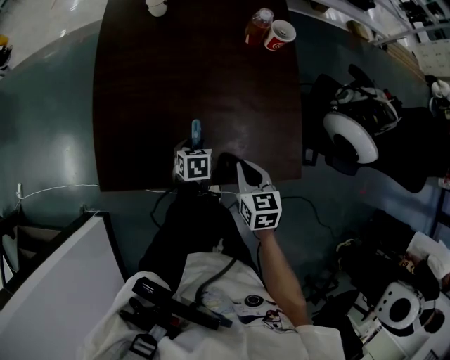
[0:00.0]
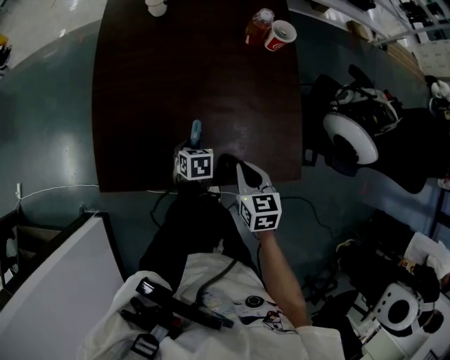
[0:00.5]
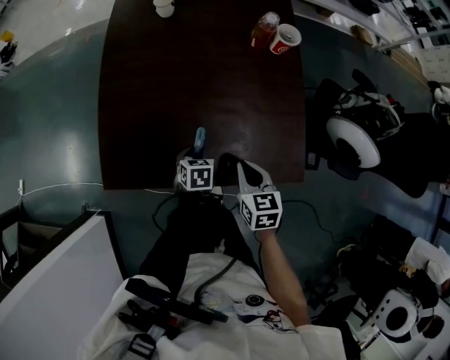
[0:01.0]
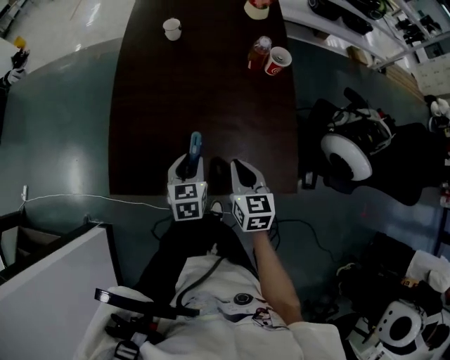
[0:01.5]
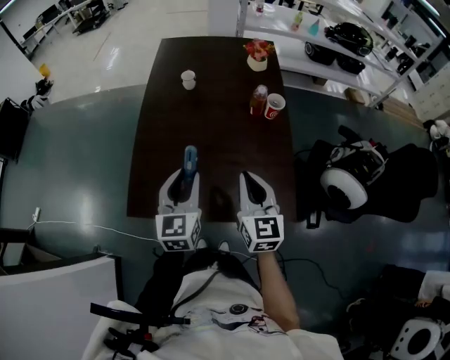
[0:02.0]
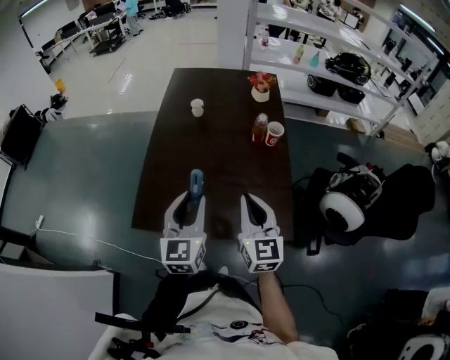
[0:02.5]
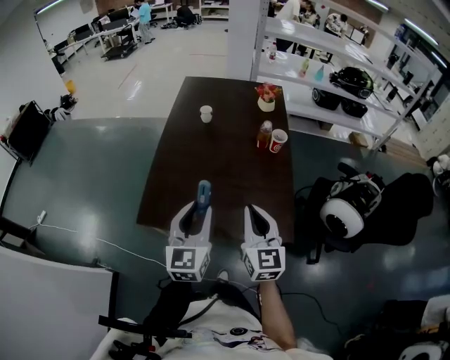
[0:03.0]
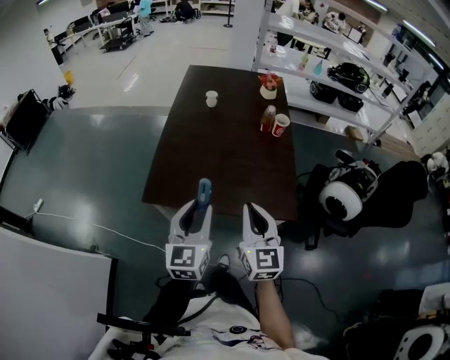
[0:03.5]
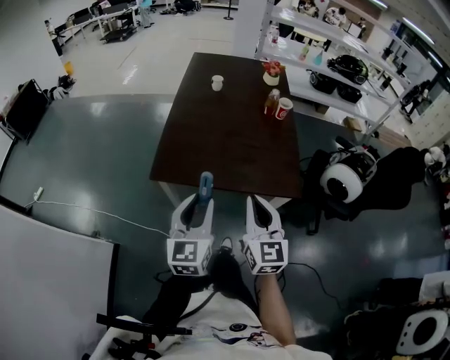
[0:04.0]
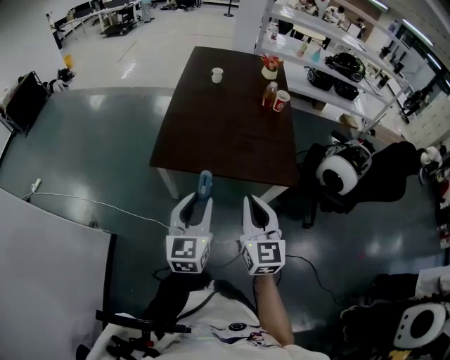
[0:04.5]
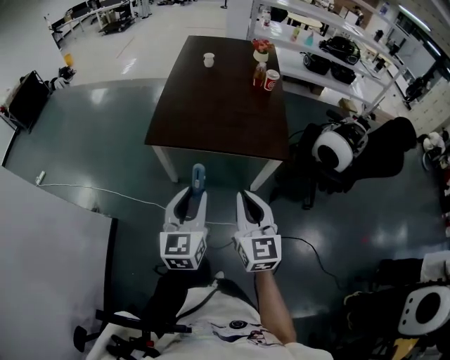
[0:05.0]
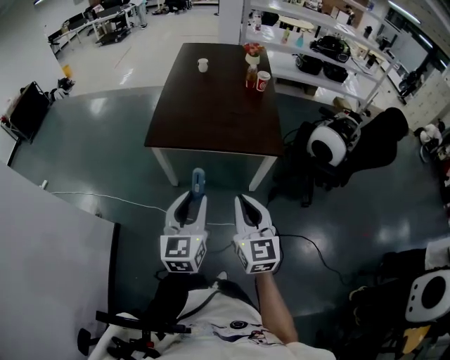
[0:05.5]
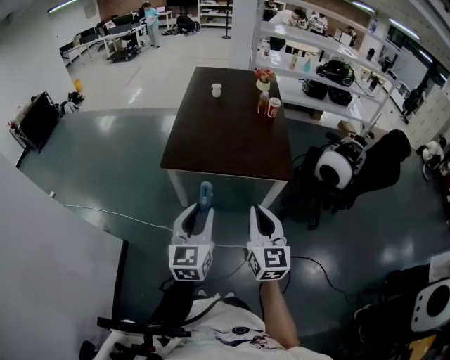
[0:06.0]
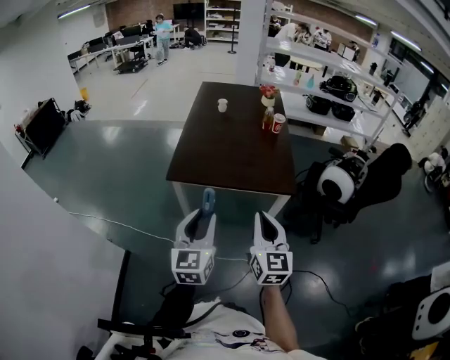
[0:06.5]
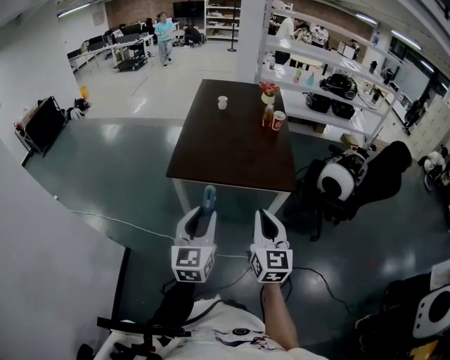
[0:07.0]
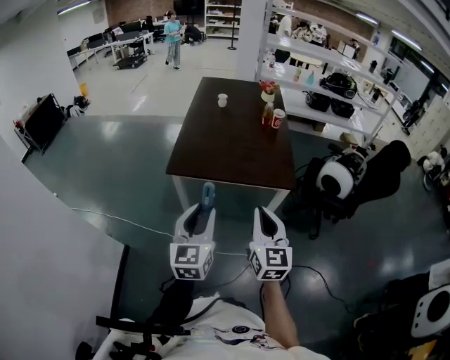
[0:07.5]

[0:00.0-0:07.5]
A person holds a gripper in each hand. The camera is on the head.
0.0 to 2.0 s: The right gripper moves upward, approximately 20 cm, and tips its fingers upward by about 30 degrees; the left gripper travels upward by approximately 35 cm, and tilts its fingers about 50 degrees upward.
2.0 to 4.0 s: The two grippers go some 25 cm backward.
4.0 to 5.5 s: Both grippers travel together backward, about 20 cm.
5.5 to 7.5 s: The left gripper heads to the left, covering about 5 cm.

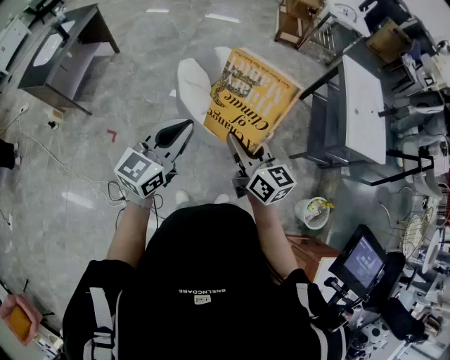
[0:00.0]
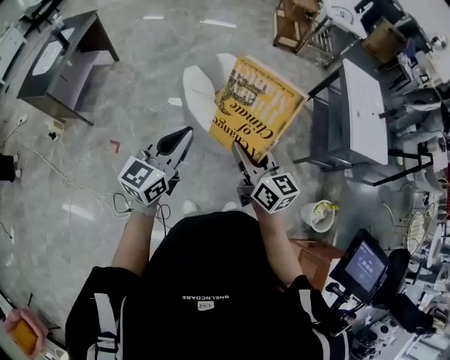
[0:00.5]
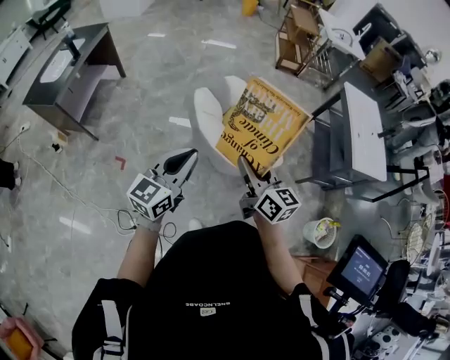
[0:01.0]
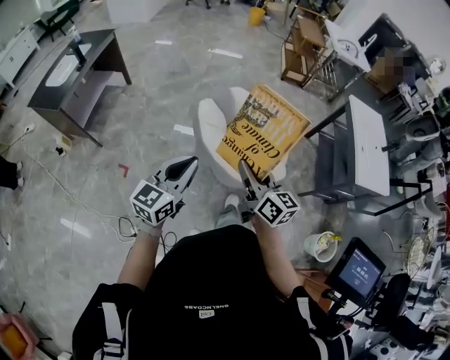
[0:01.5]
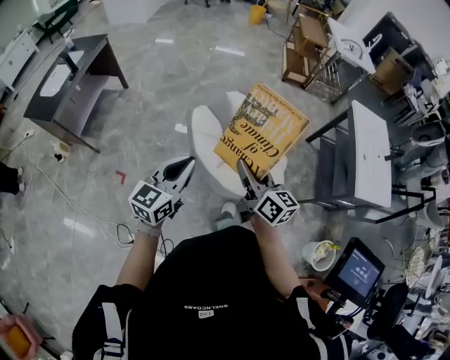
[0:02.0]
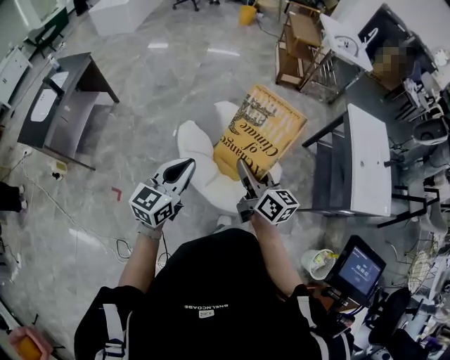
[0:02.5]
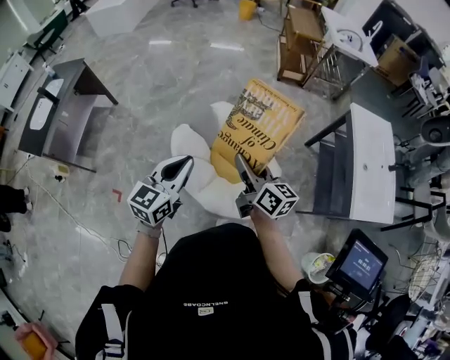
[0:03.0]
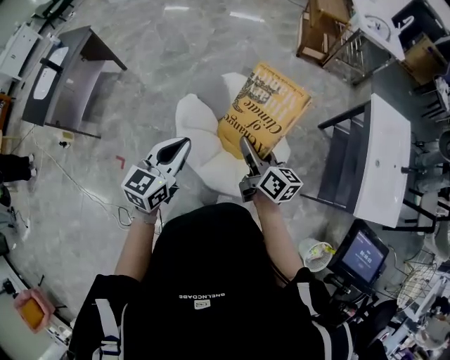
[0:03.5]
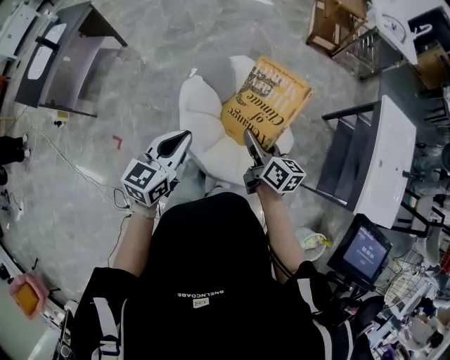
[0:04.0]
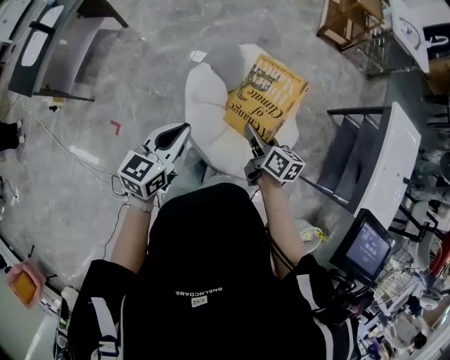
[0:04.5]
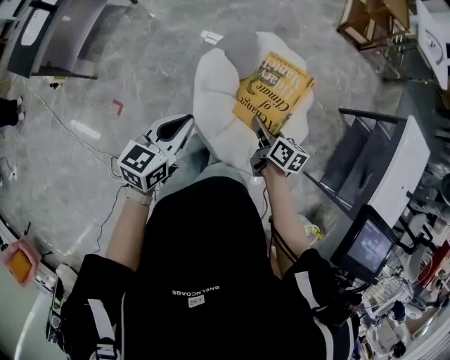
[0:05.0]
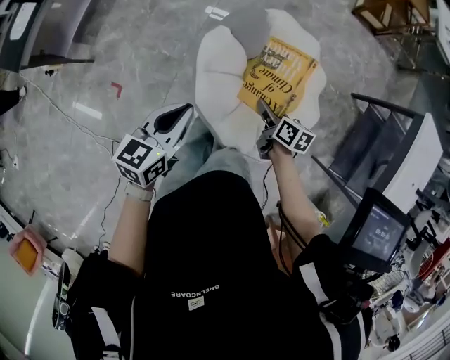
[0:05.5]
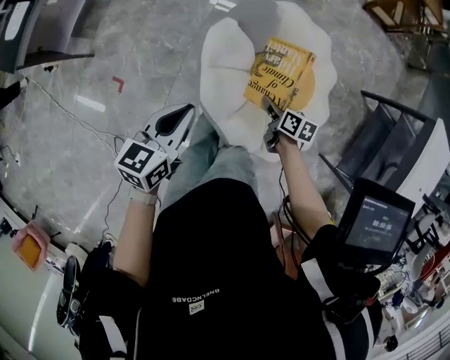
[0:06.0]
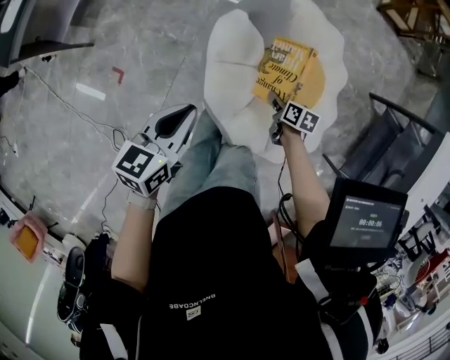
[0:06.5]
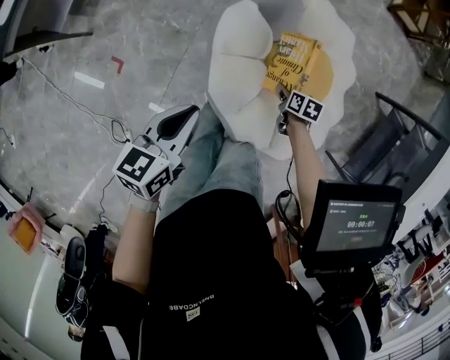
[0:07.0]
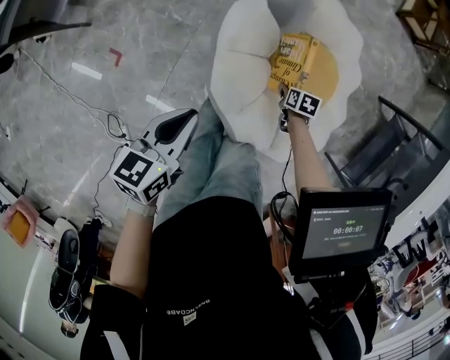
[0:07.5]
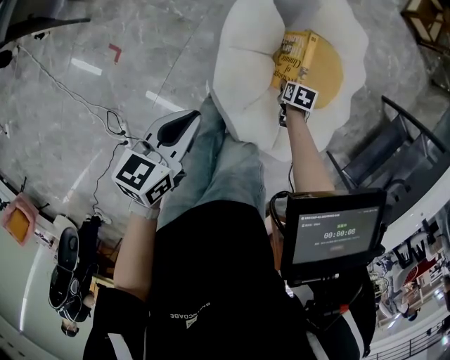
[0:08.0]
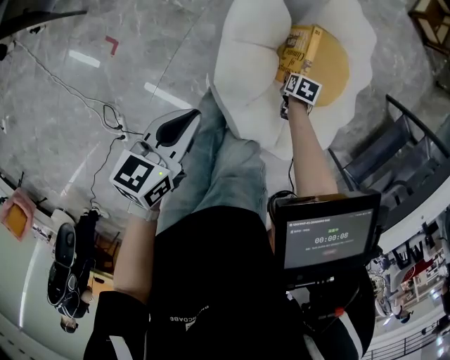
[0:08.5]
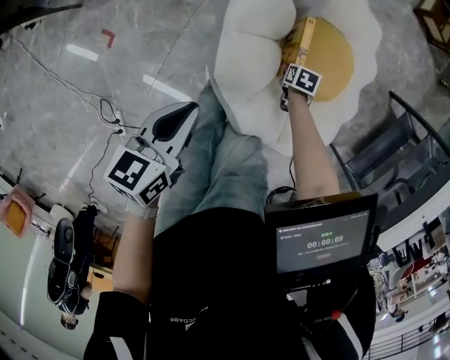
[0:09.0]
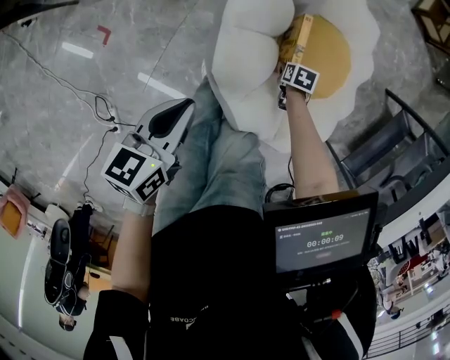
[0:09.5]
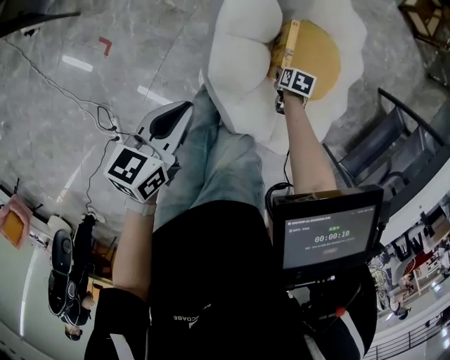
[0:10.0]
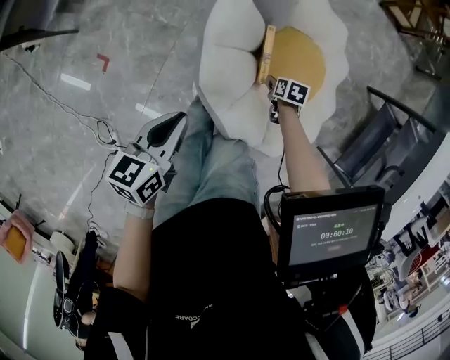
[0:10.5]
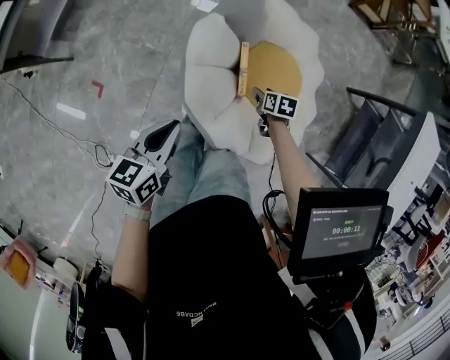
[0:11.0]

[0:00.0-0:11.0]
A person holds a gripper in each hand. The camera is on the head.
0.0 to 2.0 s: Both grippers move forward and to the left, some 20 cm.
2.0 to 3.5 s: The two grippers go approximately 25 cm forward and to the right.
3.5 to 5.5 s: The left gripper heads downward, to the left and forward, covering approximately 30 cm, and swivels some 20 degrees. Meanwhile the right gripper travels downward and to the left by about 35 cm, and tilts its fingers approximately 30 degrees downward.
5.5 to 7.5 s: The left gripper shifts some 20 cm downward and to the left; the right gripper goes approximately 30 cm downward, and angles its fingers downward, by roughly 30 degrees.
7.5 to 9.0 s: The grippers both shift downward by approximately 10 cm.
9.0 to 11.0 s: The left gripper moves upward, about 10 cm. Meanwhile the right gripper heads upward, covering roughly 20 cm.

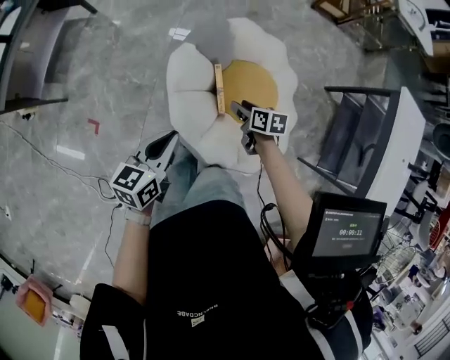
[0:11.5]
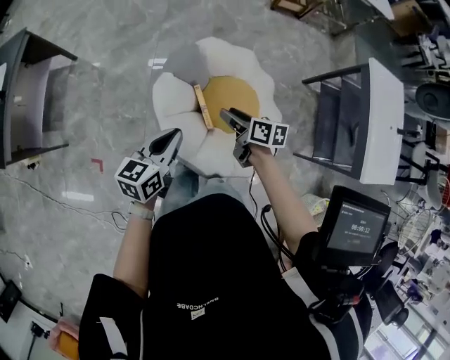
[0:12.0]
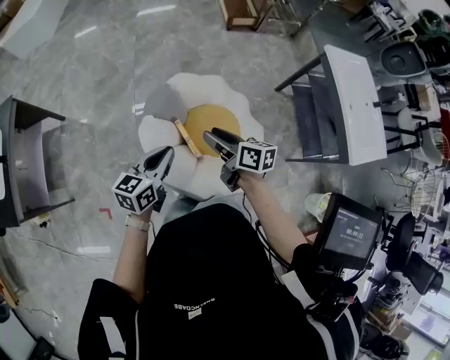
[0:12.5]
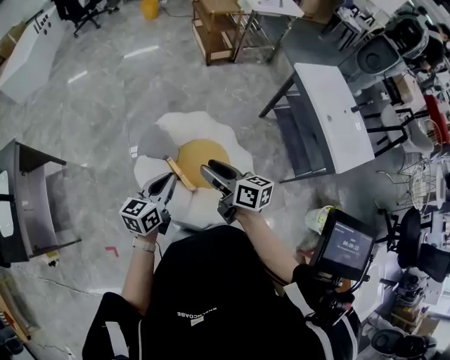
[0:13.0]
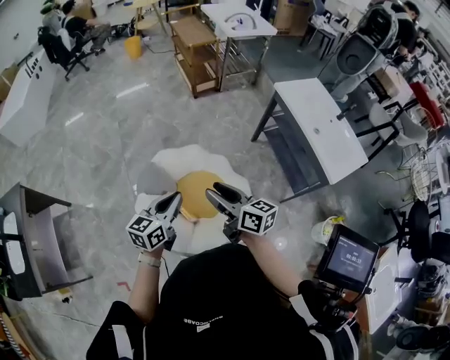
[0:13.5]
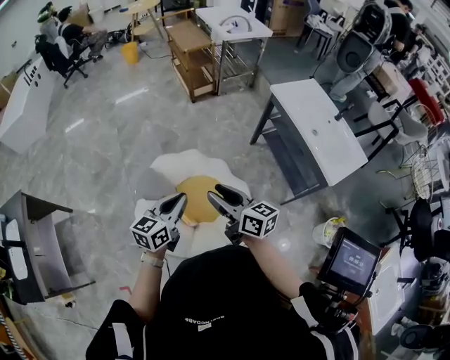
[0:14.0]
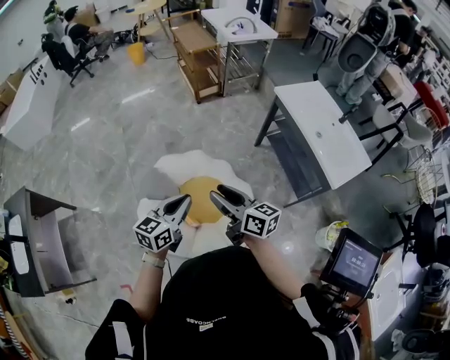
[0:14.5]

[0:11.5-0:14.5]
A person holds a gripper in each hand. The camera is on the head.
11.5 to 13.0 s: The left gripper moves upward, approximately 15 cm, and changes its angle by roughly 30 degrees. Meanwhile the right gripper heads upward, covering about 35 cm, and points its fingers some 40 degrees further upward.
13.0 to 14.5 s: Both grippers travel together to the right, approximately 10 cm.

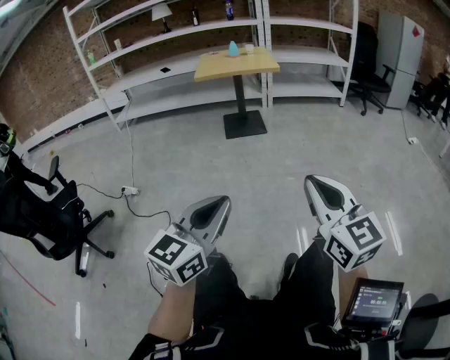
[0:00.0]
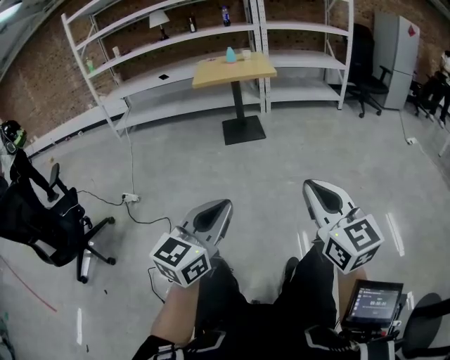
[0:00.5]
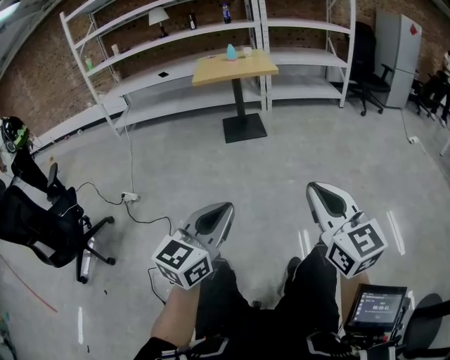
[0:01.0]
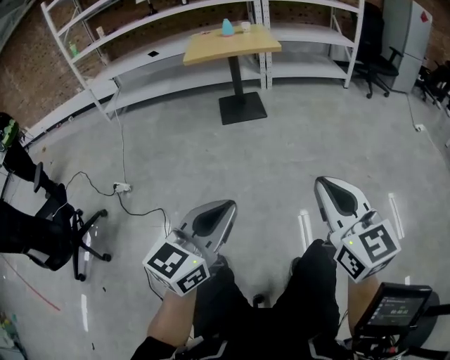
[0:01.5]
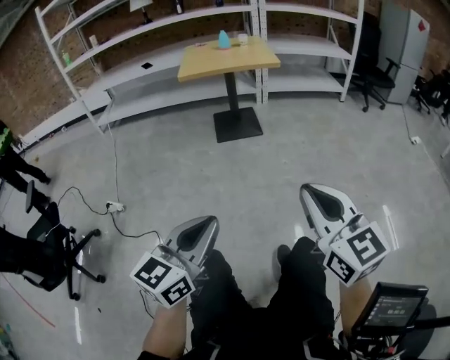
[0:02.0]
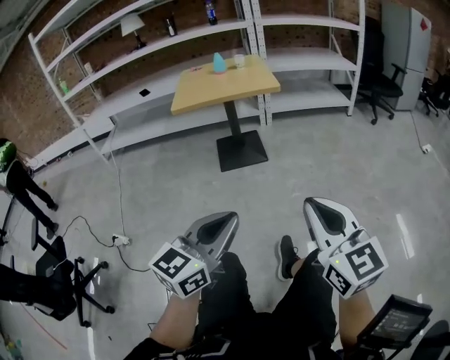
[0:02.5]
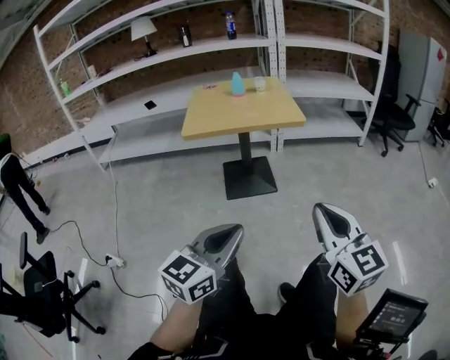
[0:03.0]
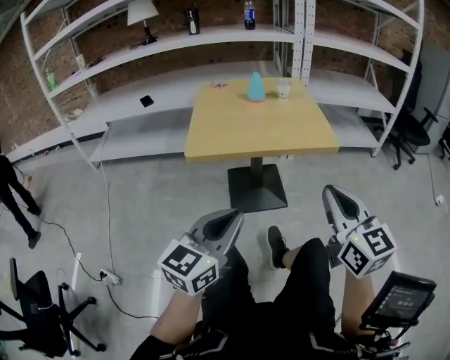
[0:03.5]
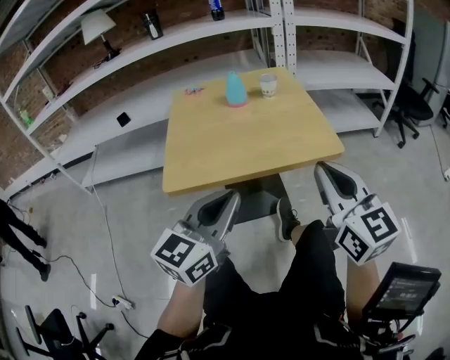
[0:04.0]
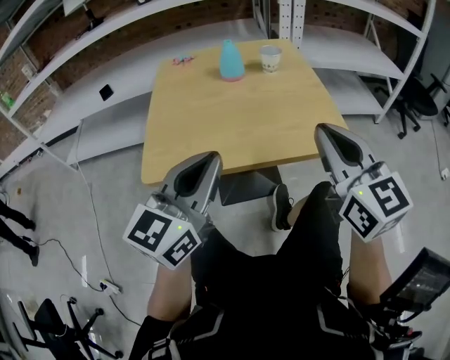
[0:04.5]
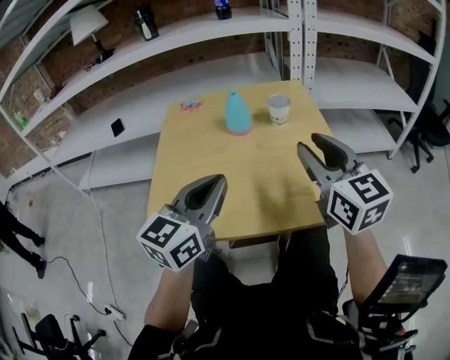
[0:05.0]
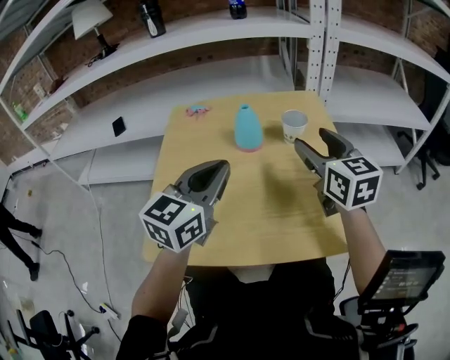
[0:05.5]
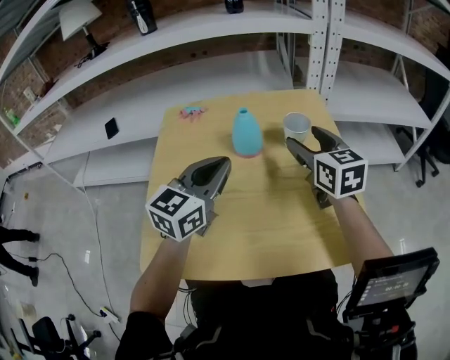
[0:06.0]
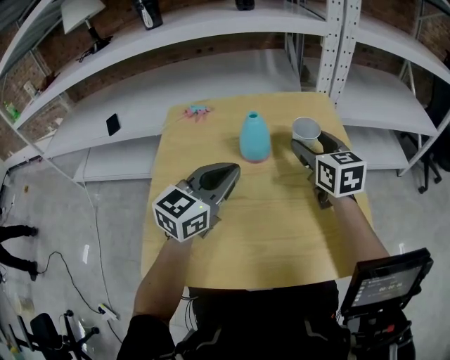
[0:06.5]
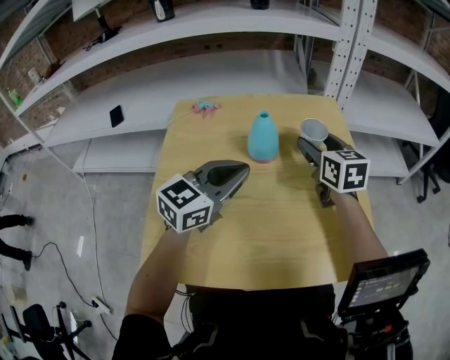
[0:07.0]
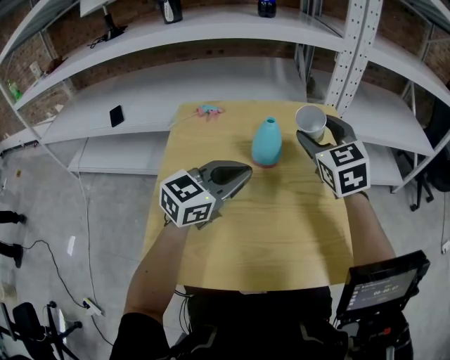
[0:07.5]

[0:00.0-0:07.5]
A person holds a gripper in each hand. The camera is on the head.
0.0 to 2.0 s: Both grippers move forward, about 15 cm.
2.0 to 4.0 s: The pair of grippers is taken forward, roughly 70 cm.
4.0 to 5.5 s: Both grippers travel together forward, approximately 35 cm. The right gripper opens its fingers.
5.5 to 7.5 s: The right gripper is displaced forward and to the left by approximately 10 cm, and swivels roughly 30 degrees. The left gripper moves forward and downward, roughly 10 cm.
